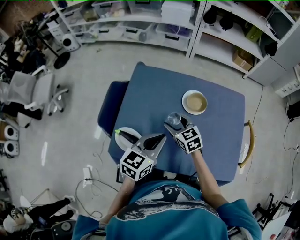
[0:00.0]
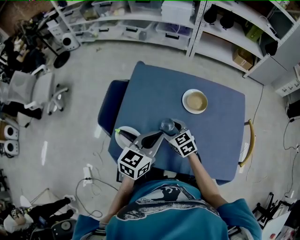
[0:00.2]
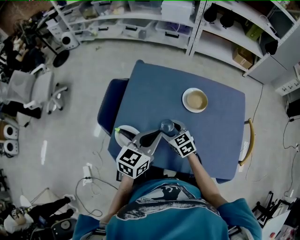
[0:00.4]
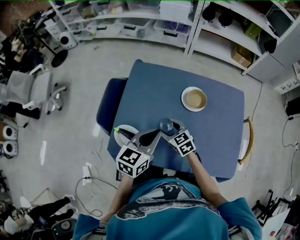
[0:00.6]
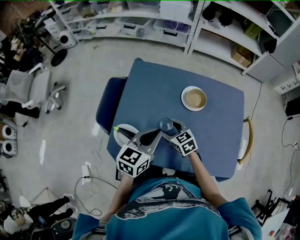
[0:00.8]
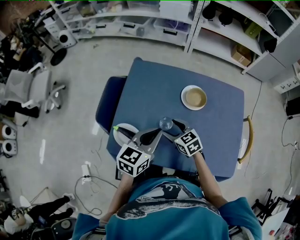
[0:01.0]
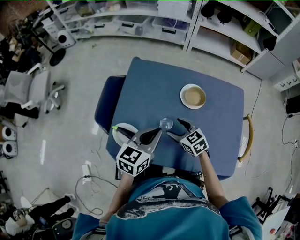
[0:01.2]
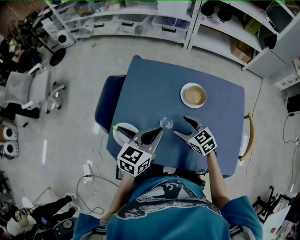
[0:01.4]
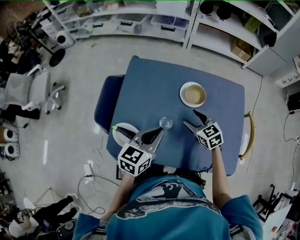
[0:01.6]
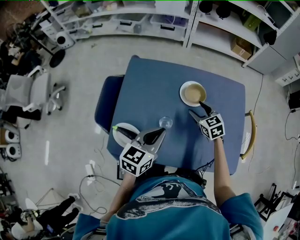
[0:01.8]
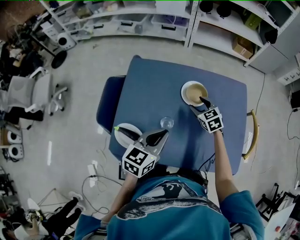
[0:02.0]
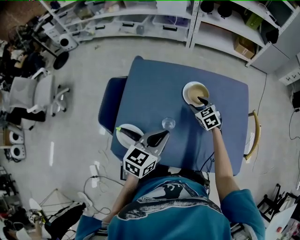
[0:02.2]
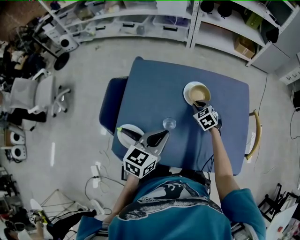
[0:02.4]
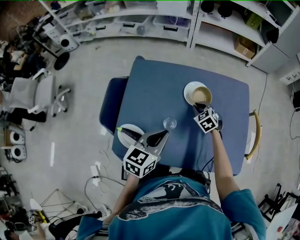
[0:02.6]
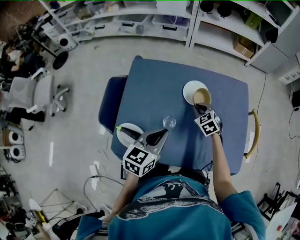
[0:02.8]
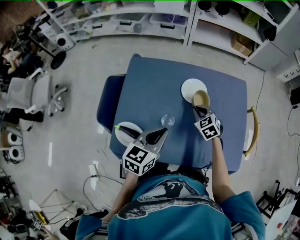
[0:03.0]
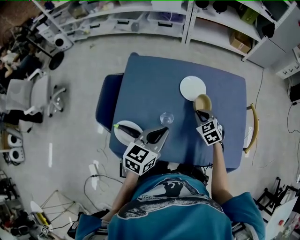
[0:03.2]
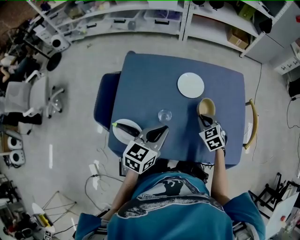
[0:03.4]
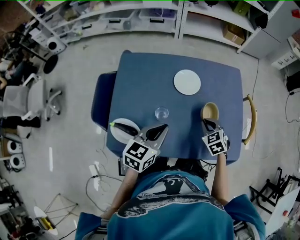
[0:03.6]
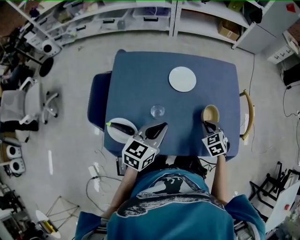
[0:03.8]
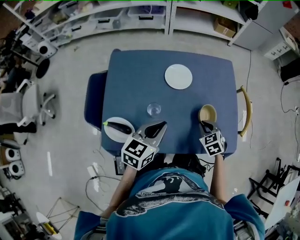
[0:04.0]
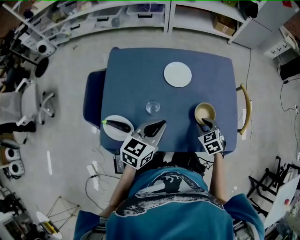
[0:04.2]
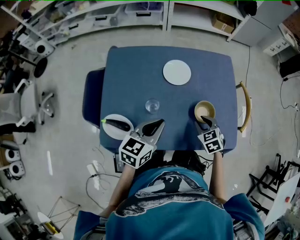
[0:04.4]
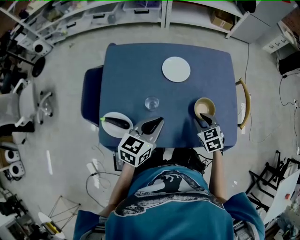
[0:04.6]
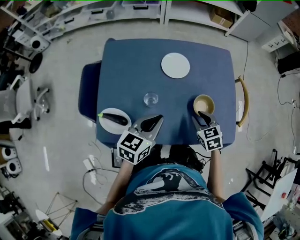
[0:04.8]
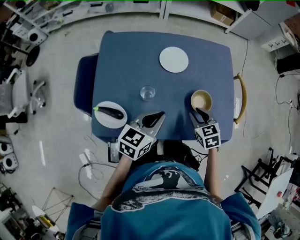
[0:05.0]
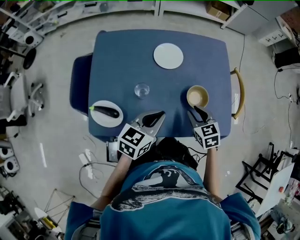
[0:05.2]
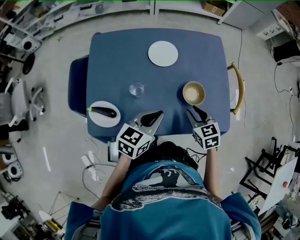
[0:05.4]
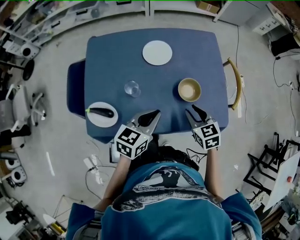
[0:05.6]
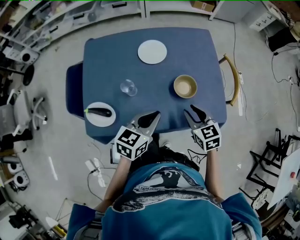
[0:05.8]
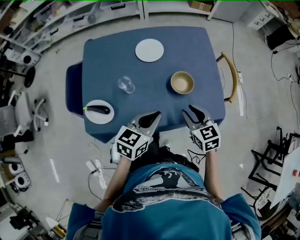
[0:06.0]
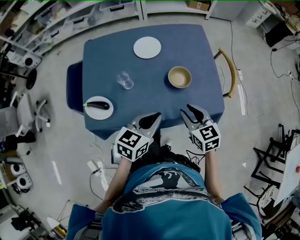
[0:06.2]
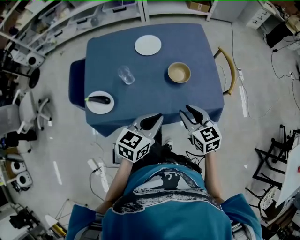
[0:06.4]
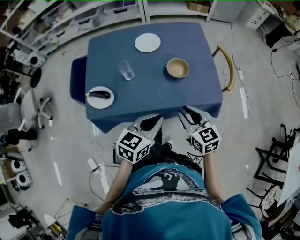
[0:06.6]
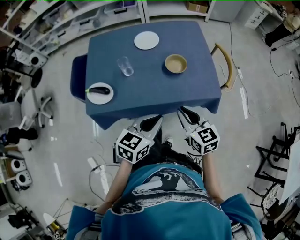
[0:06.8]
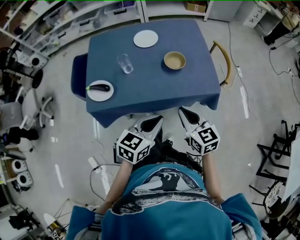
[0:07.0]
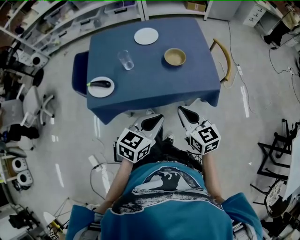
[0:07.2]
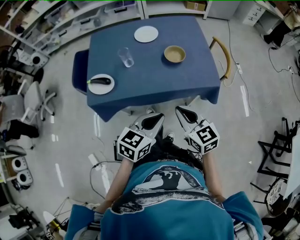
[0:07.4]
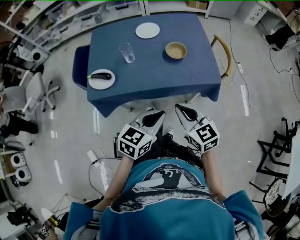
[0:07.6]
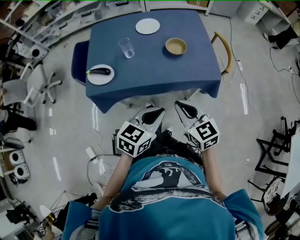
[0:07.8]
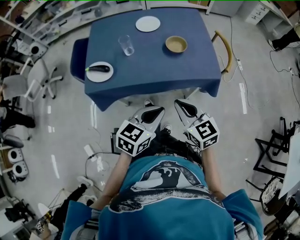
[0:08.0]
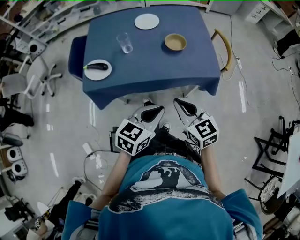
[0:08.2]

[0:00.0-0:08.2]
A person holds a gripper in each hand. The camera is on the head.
0.0 to 1.6 s: The right gripper travels to the right by roughly 10 cm.
1.6 to 3.2 s: The right gripper travels forward and back again, some 10 cm each way, and closes up.
3.2 to 5.0 s: The right gripper moves backward and to the right, roughly 15 cm. Meanwhile the left gripper shifts roughly 5 cm to the right.
5.0 to 6.6 s: The left gripper heads backward and to the right, covering approximately 20 cm; the right gripper shifts approximately 20 cm backward and upward, and swivels about 30 degrees.
6.6 to 8.2 s: Both grippers move backward, approximately 10 cm.

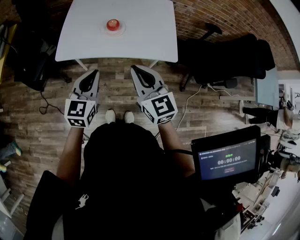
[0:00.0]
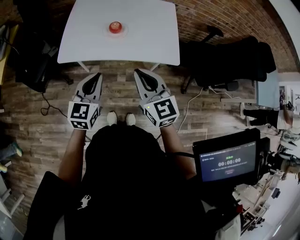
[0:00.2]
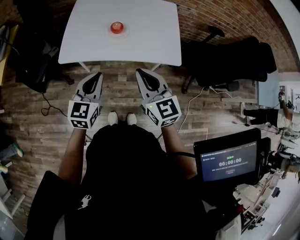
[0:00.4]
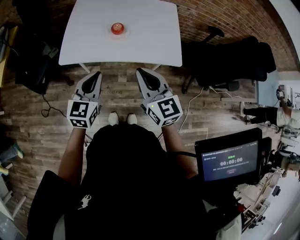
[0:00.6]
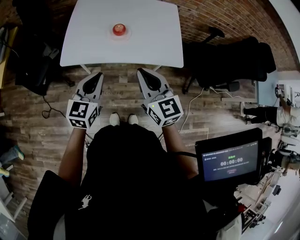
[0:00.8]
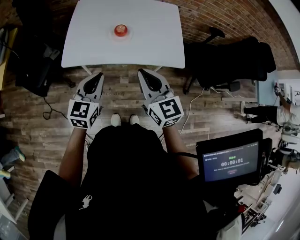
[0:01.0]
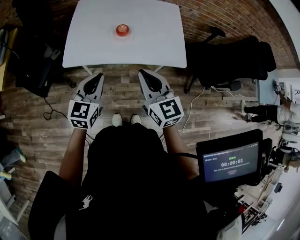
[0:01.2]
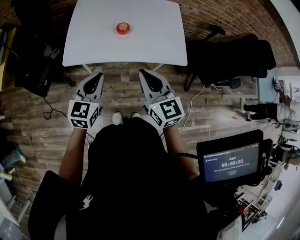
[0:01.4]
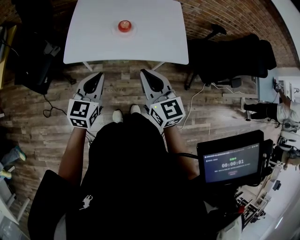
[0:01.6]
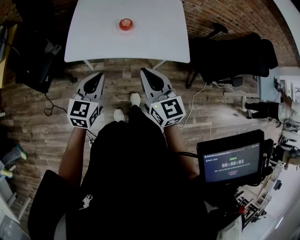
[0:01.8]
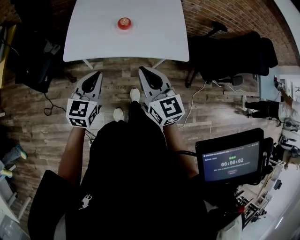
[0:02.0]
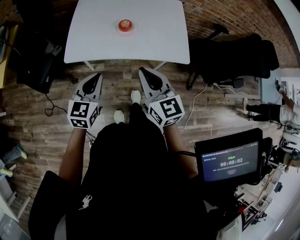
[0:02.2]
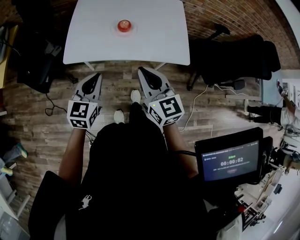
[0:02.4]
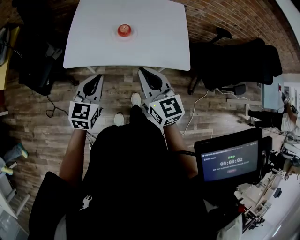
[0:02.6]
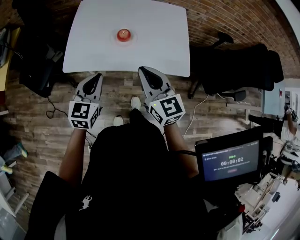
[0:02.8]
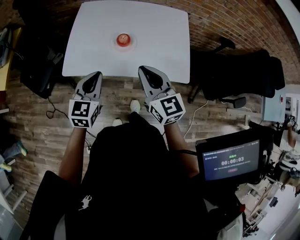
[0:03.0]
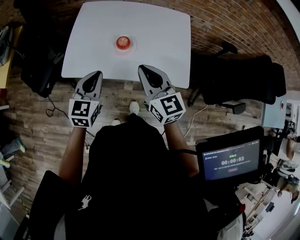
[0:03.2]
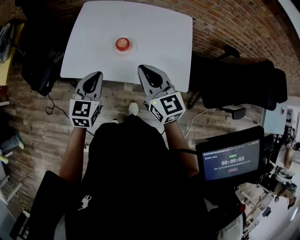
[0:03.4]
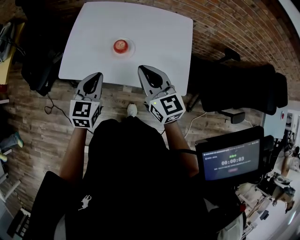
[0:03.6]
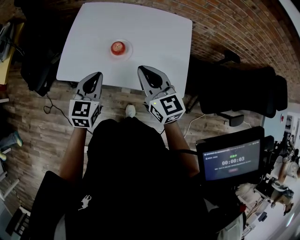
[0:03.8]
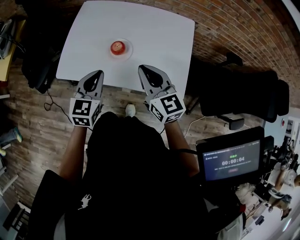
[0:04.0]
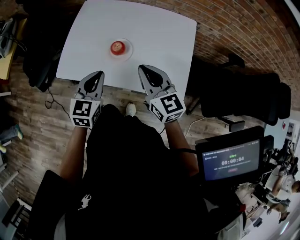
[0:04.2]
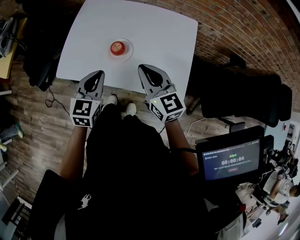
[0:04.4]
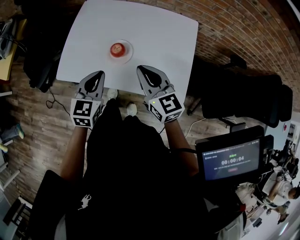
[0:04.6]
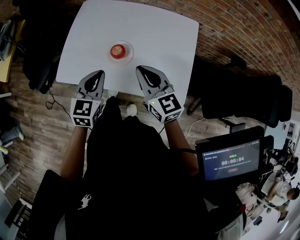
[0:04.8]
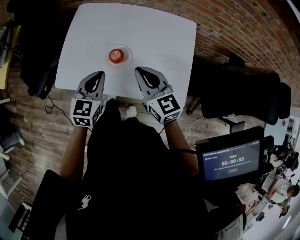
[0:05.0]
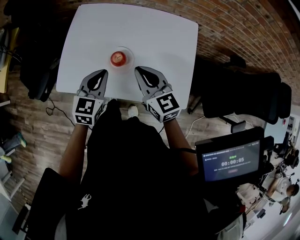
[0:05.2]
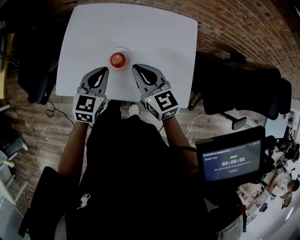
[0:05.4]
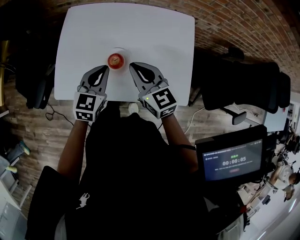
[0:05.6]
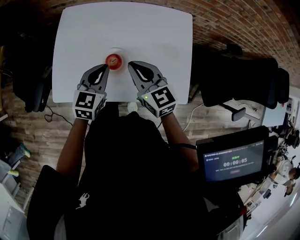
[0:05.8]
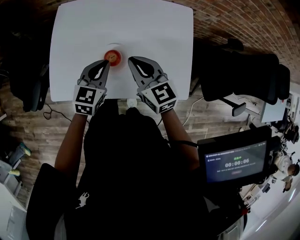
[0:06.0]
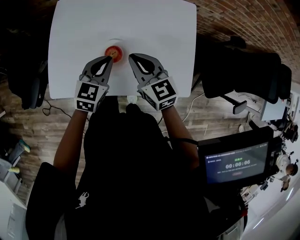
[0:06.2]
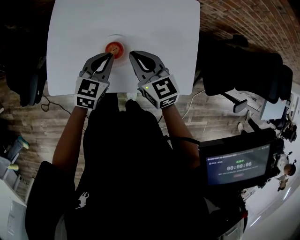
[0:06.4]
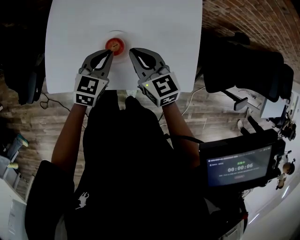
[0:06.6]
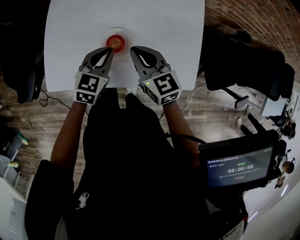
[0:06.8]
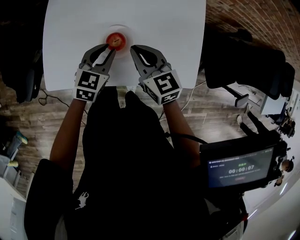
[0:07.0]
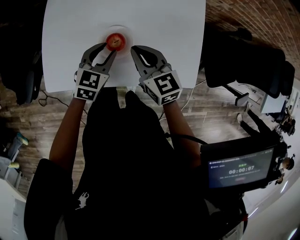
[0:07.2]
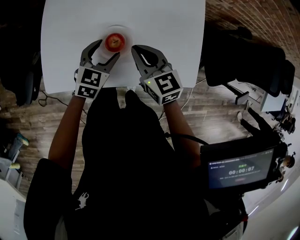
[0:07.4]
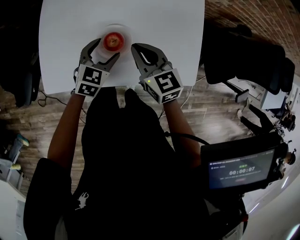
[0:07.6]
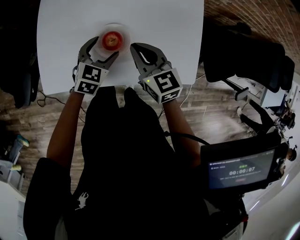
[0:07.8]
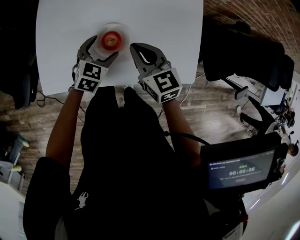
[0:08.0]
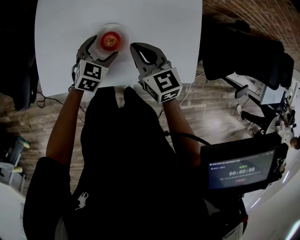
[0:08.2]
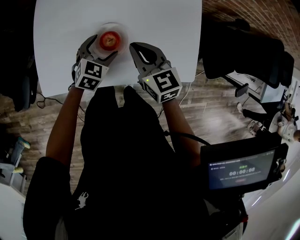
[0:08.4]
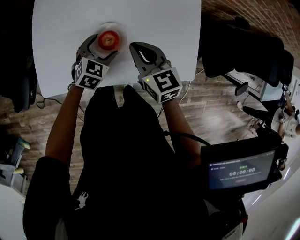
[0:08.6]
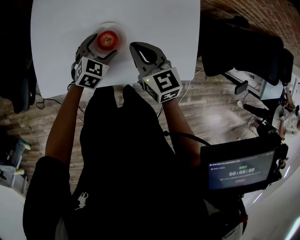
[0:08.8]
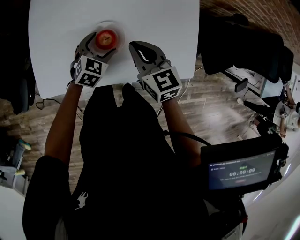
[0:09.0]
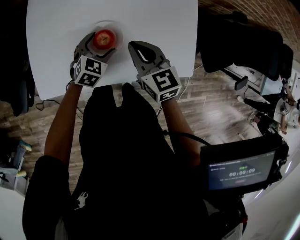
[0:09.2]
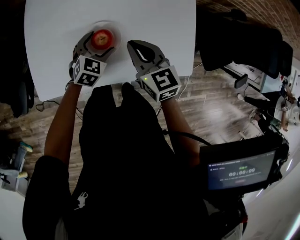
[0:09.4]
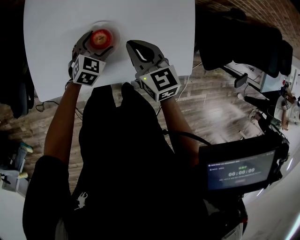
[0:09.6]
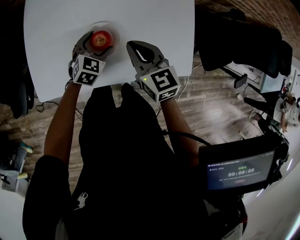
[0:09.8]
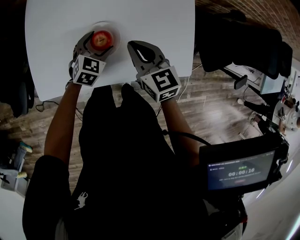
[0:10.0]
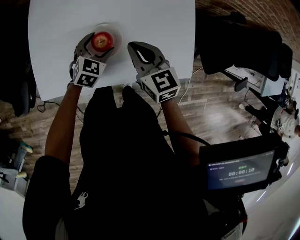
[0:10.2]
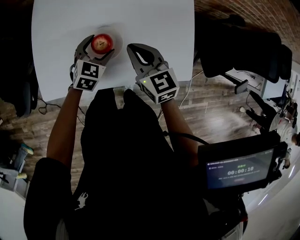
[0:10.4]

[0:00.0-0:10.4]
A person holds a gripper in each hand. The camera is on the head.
0.0 to 1.4 s: The left gripper heads to the left, covering approximately 5 cm; the right gripper changes place by approximately 5 cm.
1.4 to 3.0 s: Both grippers travel together forward, approximately 10 cm.
3.0 to 4.4 s: The left gripper goes some 10 cm to the right and forward; the right gripper shifts about 10 cm forward and to the right.
4.4 to 6.0 s: The two grippers go some 15 cm forward and downward.
6.0 to 7.4 s: Both grippers move downward, some 5 cm. The left gripper opens its fingers.
7.4 to 9.0 s: The left gripper travels downward by about 5 cm.
9.0 to 10.4 s: There are only small adjustments of the grippers.

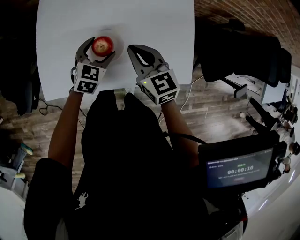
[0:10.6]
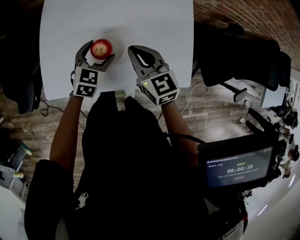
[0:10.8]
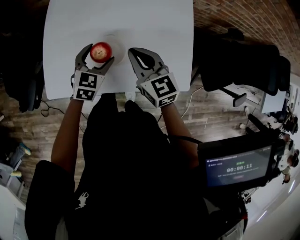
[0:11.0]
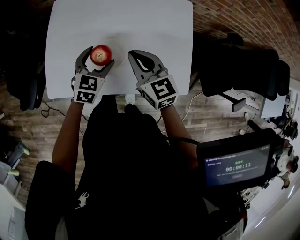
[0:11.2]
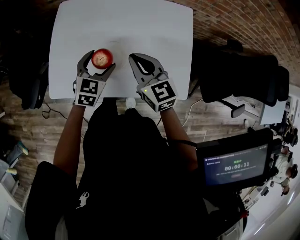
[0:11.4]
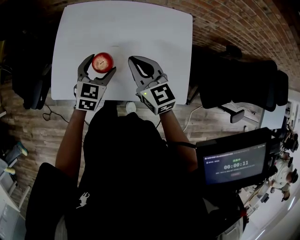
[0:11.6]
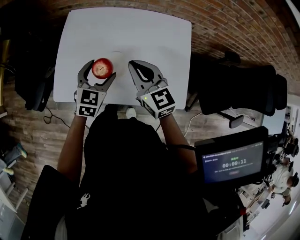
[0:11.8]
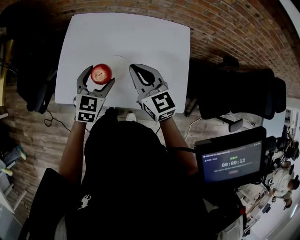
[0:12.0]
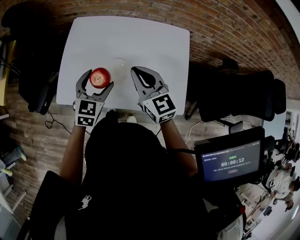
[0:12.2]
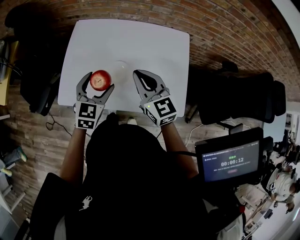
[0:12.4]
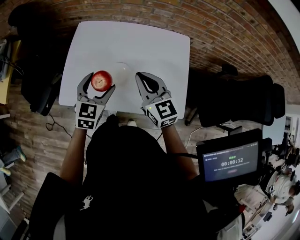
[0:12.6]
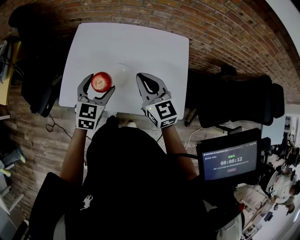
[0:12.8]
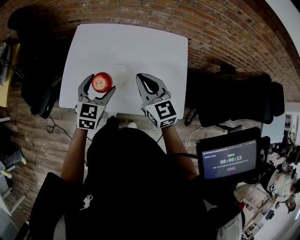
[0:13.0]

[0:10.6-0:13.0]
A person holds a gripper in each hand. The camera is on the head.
10.6 to 11.8 s: The two grippers go roughly 10 cm upward.
11.8 to 13.0 s: The left gripper shifts by some 5 cm.

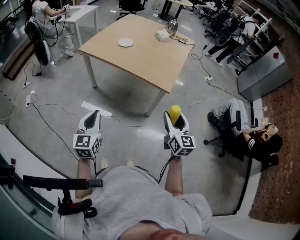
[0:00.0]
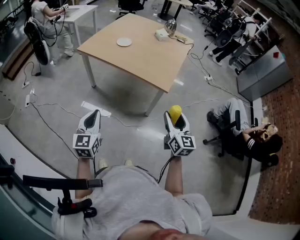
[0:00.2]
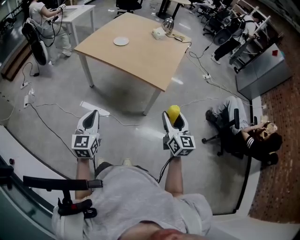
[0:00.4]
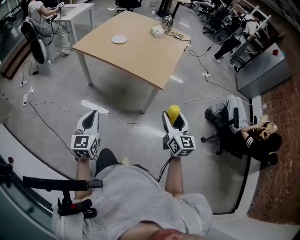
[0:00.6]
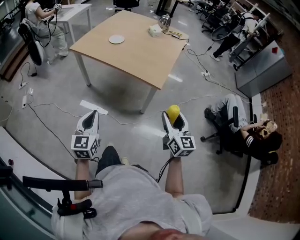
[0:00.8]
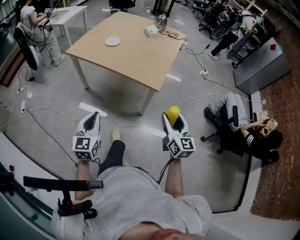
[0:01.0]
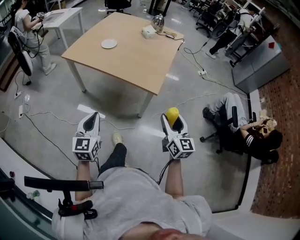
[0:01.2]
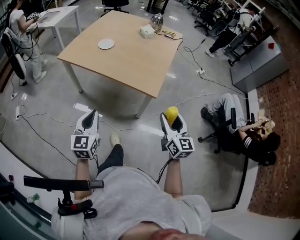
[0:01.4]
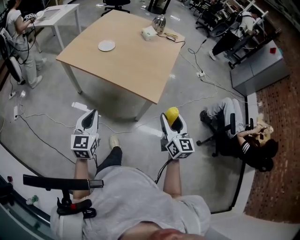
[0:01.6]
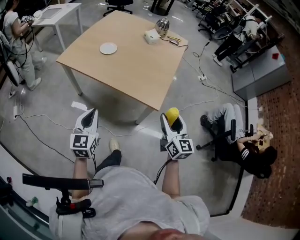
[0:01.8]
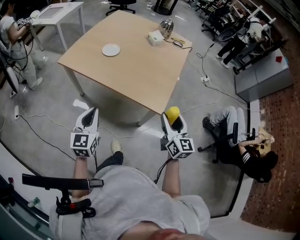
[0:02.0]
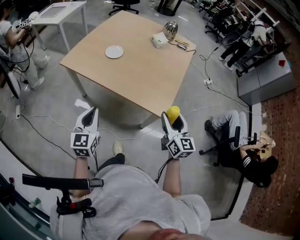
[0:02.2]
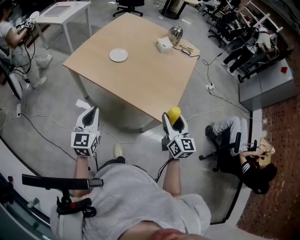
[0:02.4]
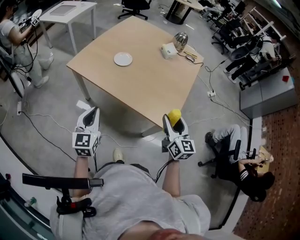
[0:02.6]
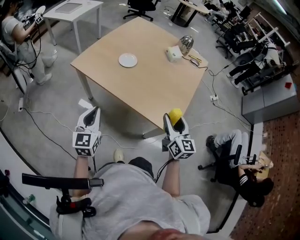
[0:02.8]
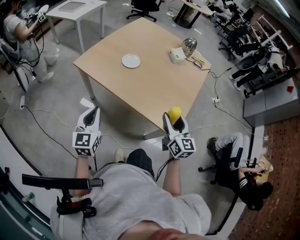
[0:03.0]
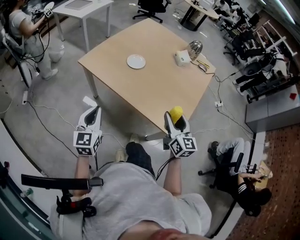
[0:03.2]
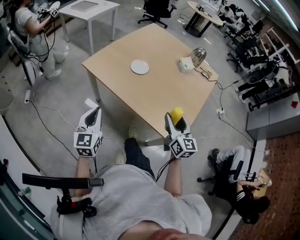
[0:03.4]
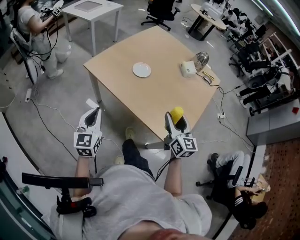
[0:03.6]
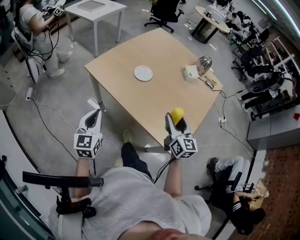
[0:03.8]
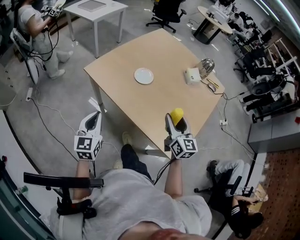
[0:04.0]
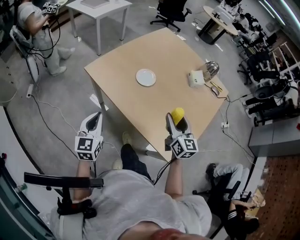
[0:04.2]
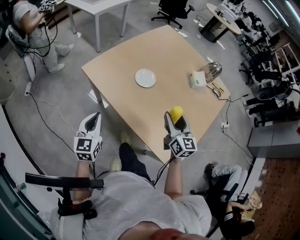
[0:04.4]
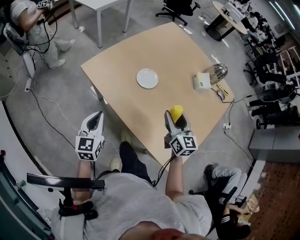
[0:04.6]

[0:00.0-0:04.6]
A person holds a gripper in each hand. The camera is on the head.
0.0 to 1.6 s: The grippers both shift forward and to the right by approximately 15 cm.
1.6 to 3.0 s: Both grippers travel together forward and to the left, some 25 cm.
3.0 to 4.6 s: The right gripper moves forward, approximately 25 cm. Meanwhile the left gripper goes roughly 15 cm forward.
